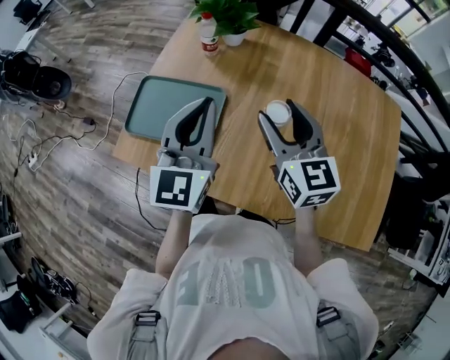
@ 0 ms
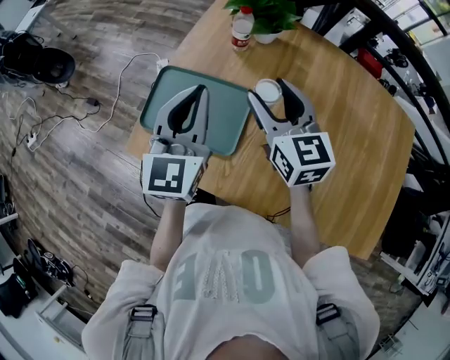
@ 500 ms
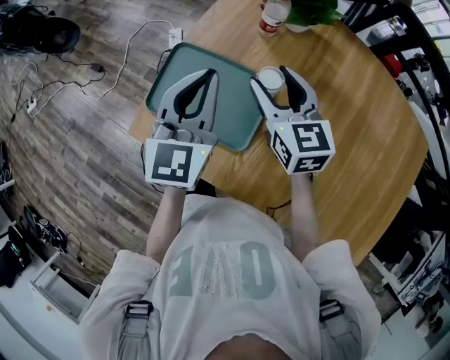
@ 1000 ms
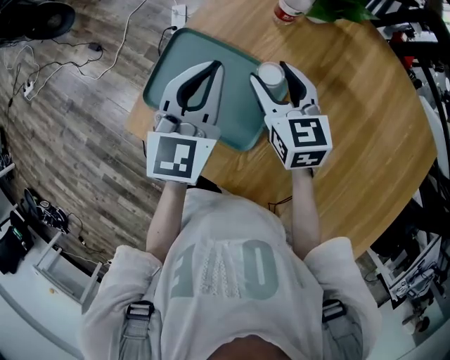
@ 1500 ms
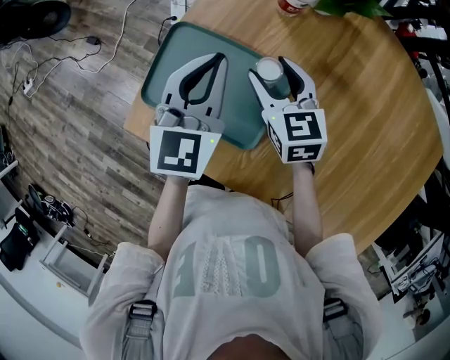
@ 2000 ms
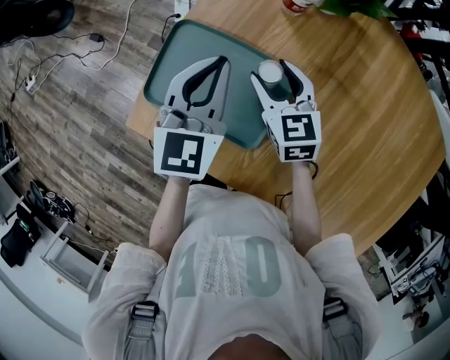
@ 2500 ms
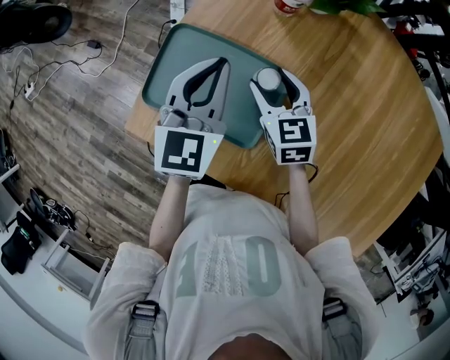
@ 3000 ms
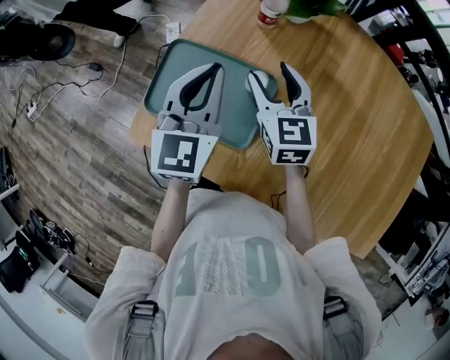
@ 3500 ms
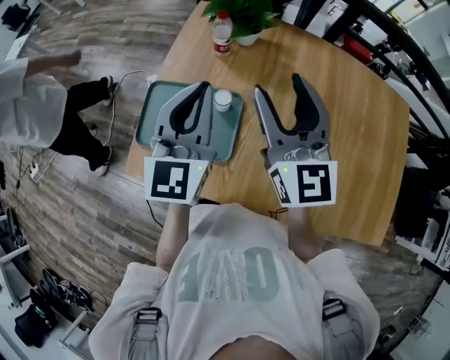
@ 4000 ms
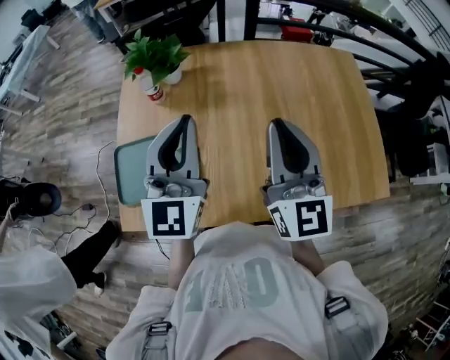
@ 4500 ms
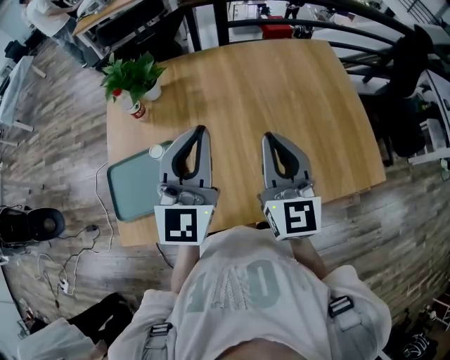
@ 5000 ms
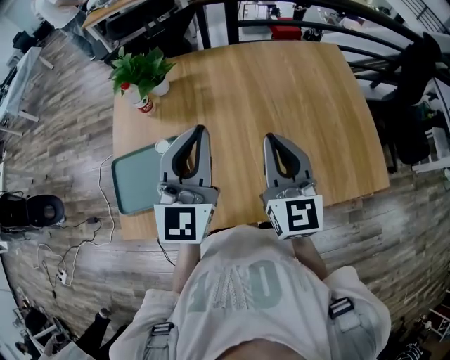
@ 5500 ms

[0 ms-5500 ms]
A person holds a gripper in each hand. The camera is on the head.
0 ms to 2000 ms: The right gripper heads downward, forward and to the left, covering some 30 cm, and rotates about 30 degrees. The left gripper moves forward, downward and to the left, some 25 cm, and turns by roughly 20 degrees.
2000 ms to 3500 ms: The left gripper moves about 5 cm. Meanwhile the right gripper moves upward, about 5 cm.
3500 ms to 5500 ms: The right gripper shifts by approximately 35 cm, changes its angle by about 40 degrees, and closes up. Meanwhile the left gripper changes place by about 30 cm, and changes its angle by approximately 40 degrees.

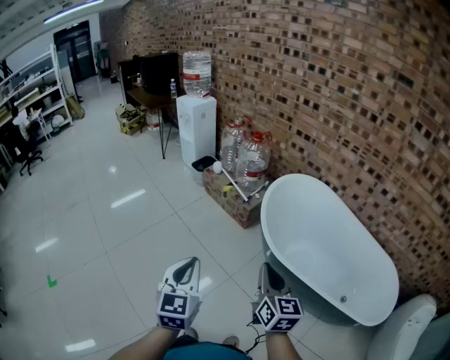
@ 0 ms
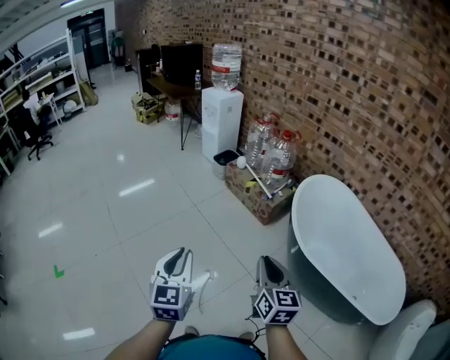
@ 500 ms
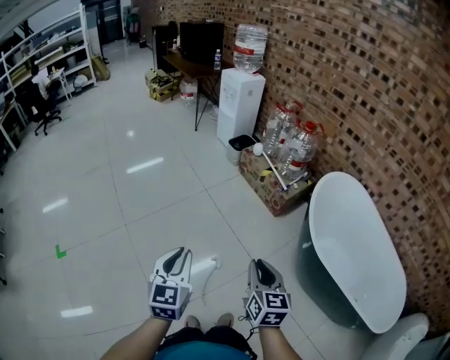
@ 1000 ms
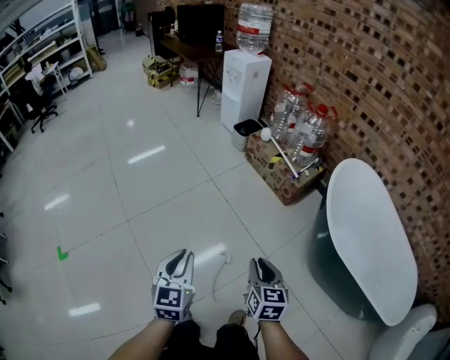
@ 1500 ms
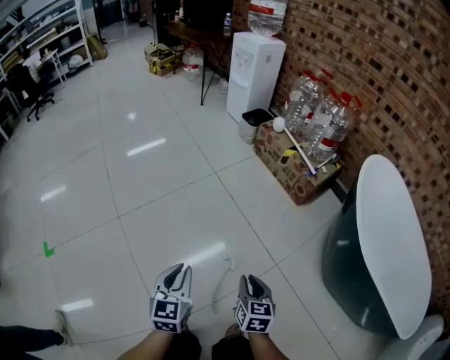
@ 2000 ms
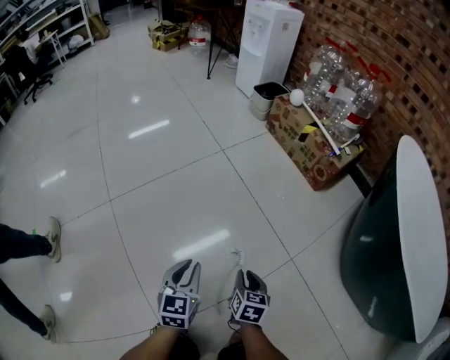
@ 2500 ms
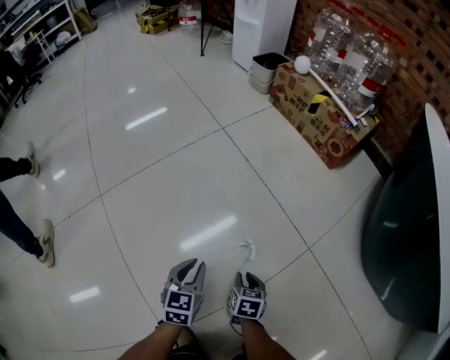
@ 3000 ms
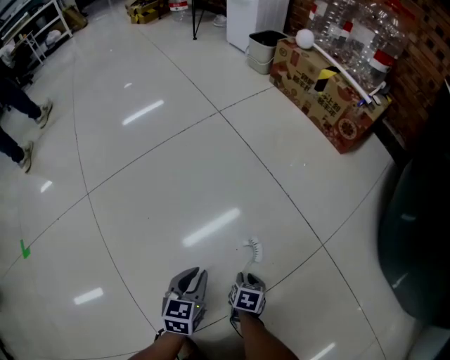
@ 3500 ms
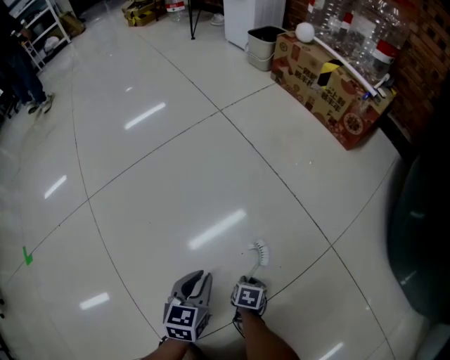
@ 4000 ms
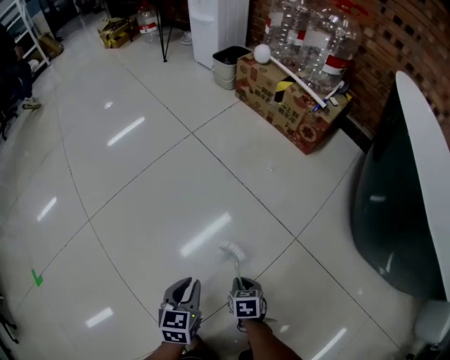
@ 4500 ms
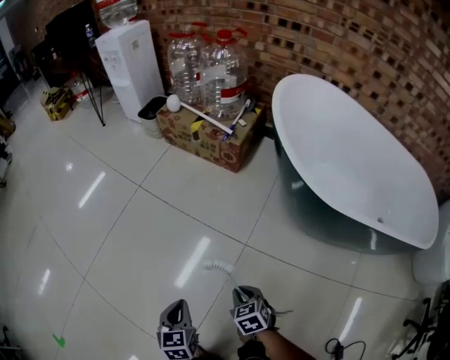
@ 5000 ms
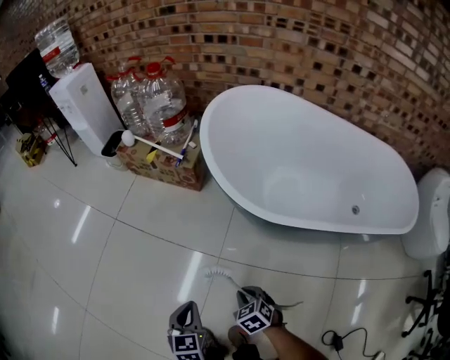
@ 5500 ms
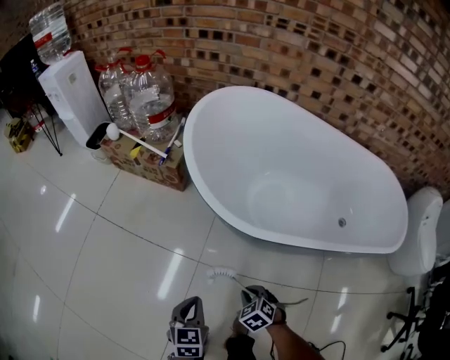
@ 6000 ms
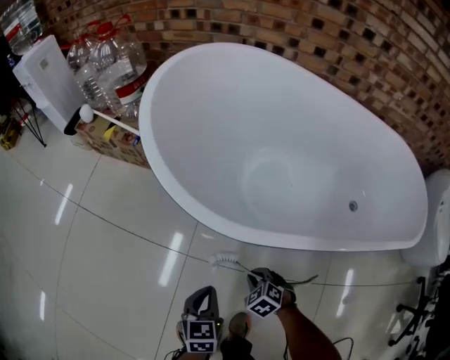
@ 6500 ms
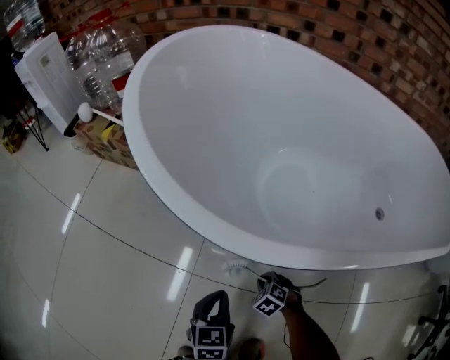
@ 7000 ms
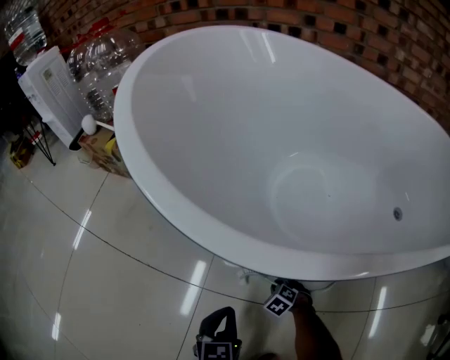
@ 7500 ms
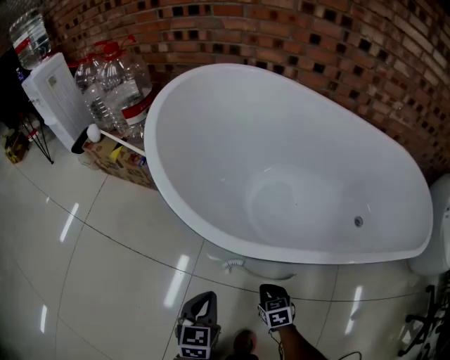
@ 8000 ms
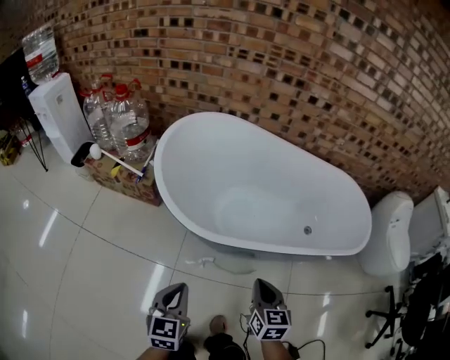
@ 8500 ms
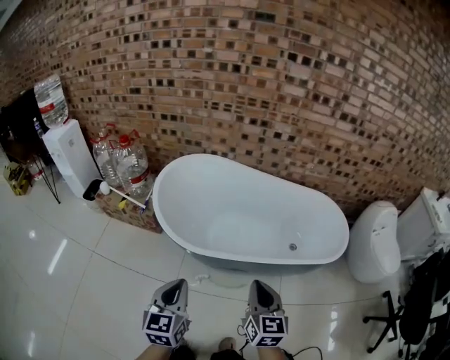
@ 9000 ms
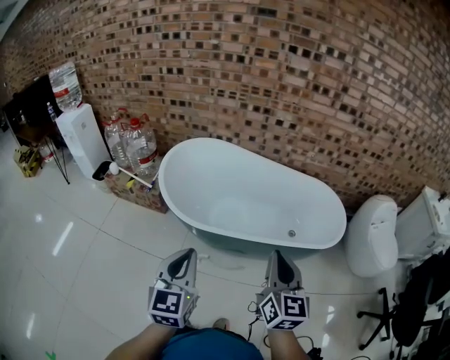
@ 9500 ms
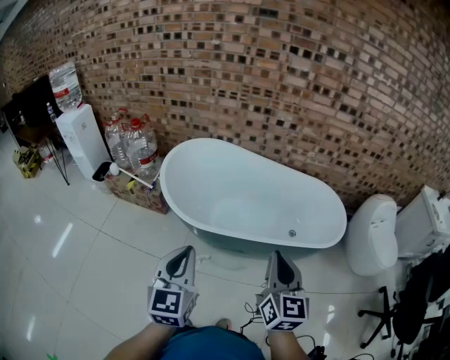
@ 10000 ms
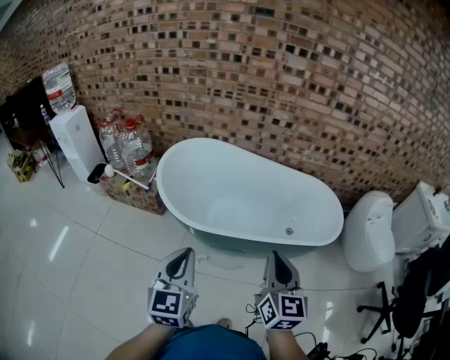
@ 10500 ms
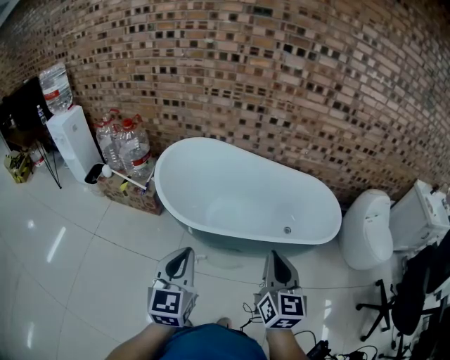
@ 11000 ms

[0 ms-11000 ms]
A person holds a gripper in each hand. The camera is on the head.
0 ms to 2000 ms: The two grippers go about 60 cm downward and to the left. The right gripper turns by roughly 30 degrees.
2000 ms to 3500 ms: Both grippers move downward, roughly 60 cm. The right gripper turns by some 30 degrees.
3500 ms to 5500 ms: The two grippers go approximately 60 cm upward and to the right. The left gripper swivels about 30 degrees.
5500 ms to 7500 ms: The grippers both shift downward by approximately 40 cm. The right gripper turns by roughly 20 degrees.
7500 ms to 9000 ms: The grippers both shift upward by approximately 90 cm. The left gripper swivels roughly 20 degrees, while the right gripper tips its fingers upward by about 60 degrees.
9000 ms to 11000 ms: The left gripper travels upward by some 10 cm. The right gripper shifts roughly 10 cm upward and backward.

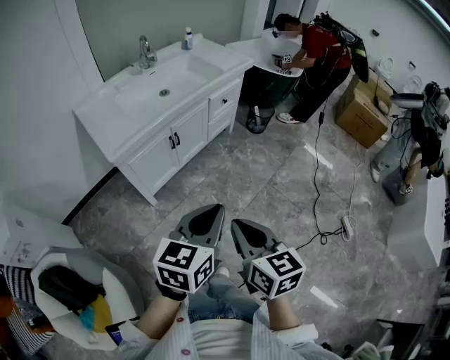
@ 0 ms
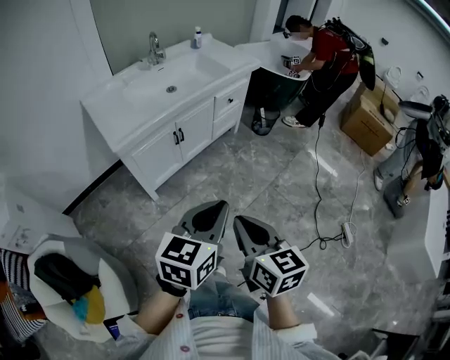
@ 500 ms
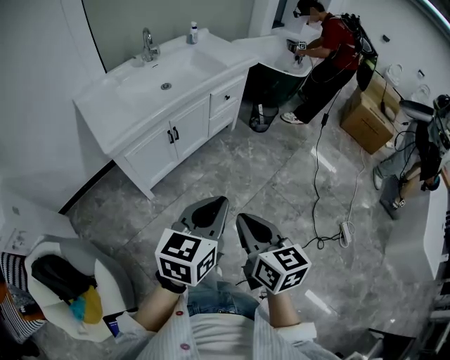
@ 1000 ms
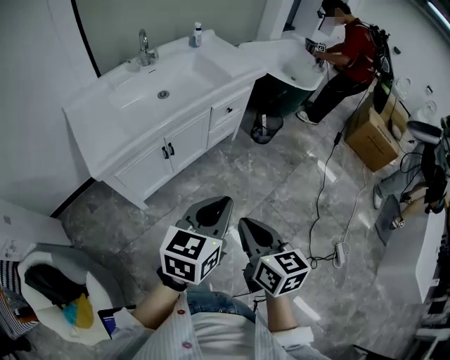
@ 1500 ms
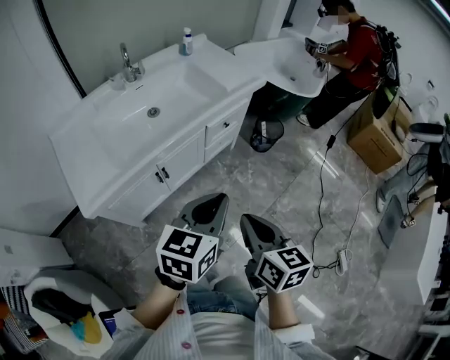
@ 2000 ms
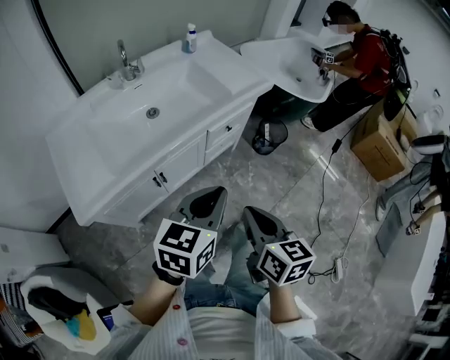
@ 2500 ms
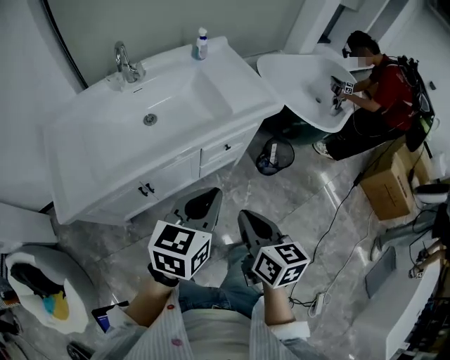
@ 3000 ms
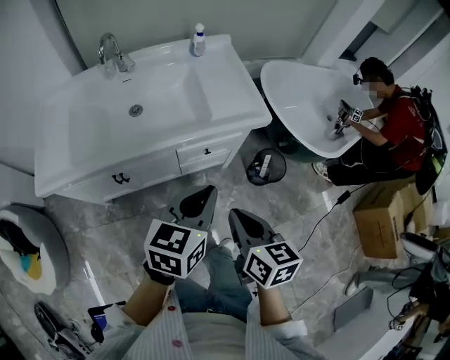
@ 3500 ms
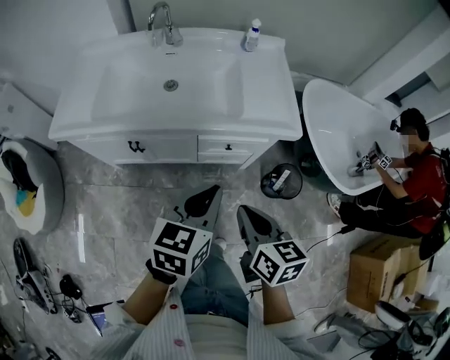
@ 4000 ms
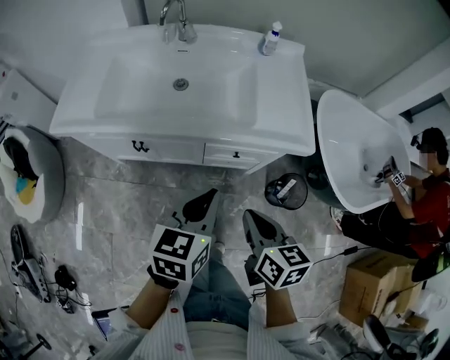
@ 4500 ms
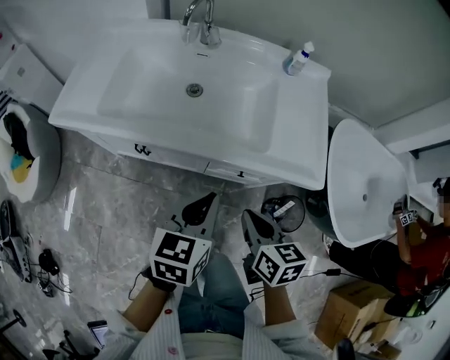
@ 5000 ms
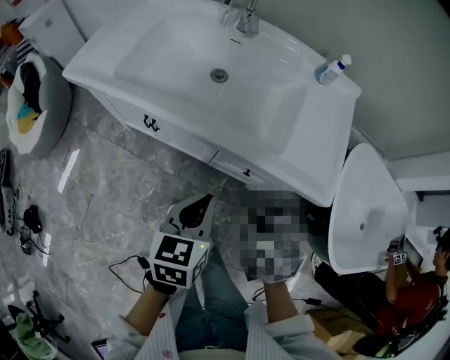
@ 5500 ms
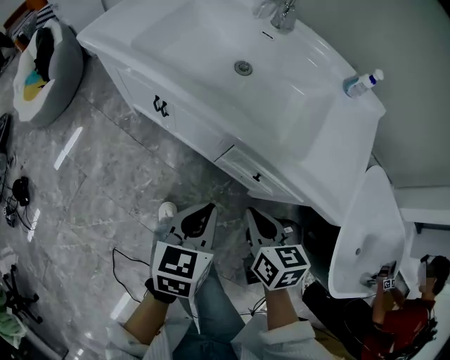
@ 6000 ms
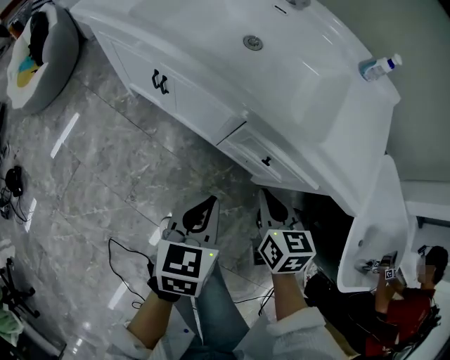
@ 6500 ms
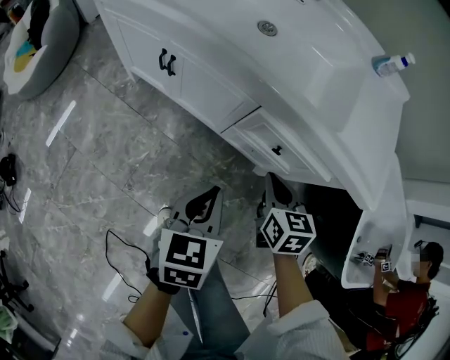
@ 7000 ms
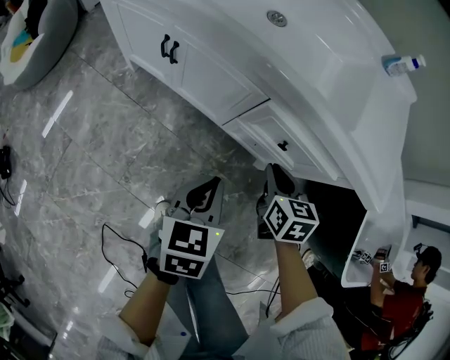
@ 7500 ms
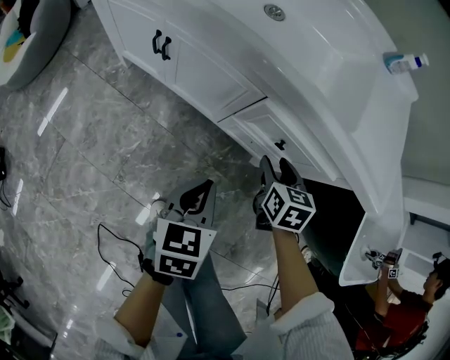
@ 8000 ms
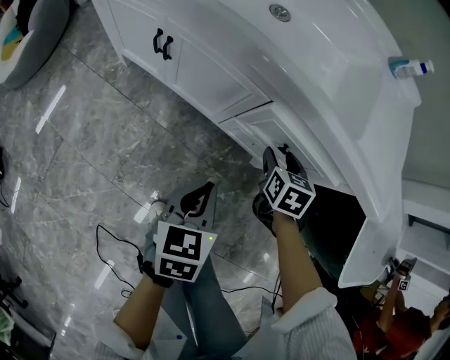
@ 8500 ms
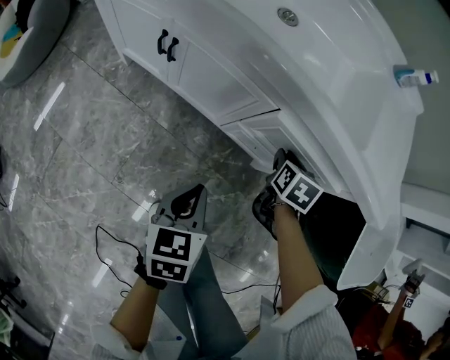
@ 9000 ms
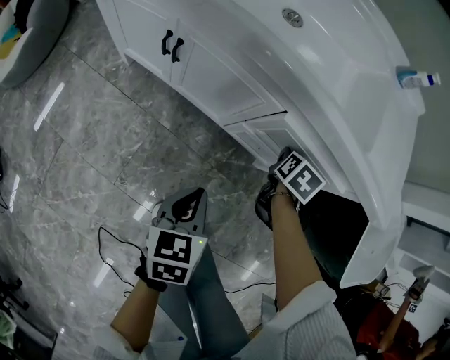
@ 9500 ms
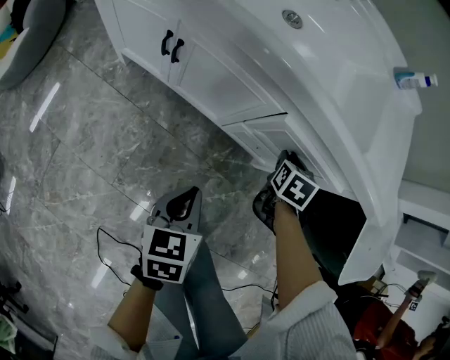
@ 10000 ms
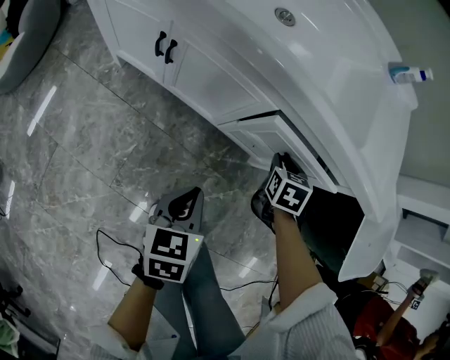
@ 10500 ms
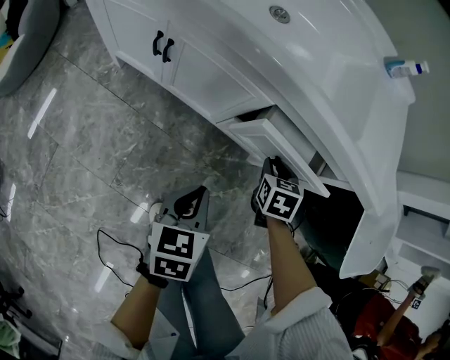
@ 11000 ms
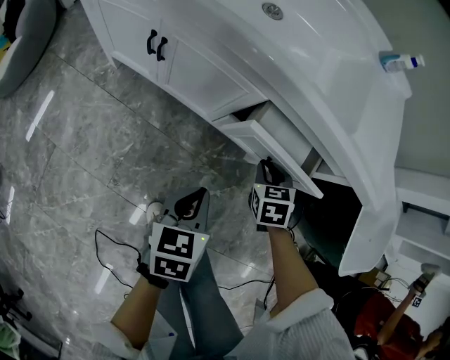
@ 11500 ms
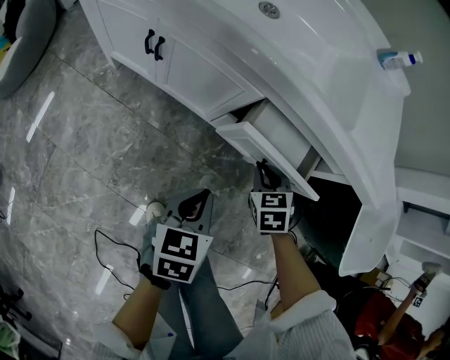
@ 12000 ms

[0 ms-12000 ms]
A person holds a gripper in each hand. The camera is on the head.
0 ms to 2000 ms: Both grippers move forward, approximately 30 cm.
2000 ms to 4000 ms: The right gripper shifts by approximately 35 cm, and turns by about 40 degrees. The left gripper ends up approximately 30 cm from where it was, and changes its angle by approximately 40 degrees.
4000 ms to 6000 ms: The two grippers go about 15 cm downward. The left gripper changes its angle by about 40 degrees; the right gripper changes its angle by roughly 30 degrees.
6000 ms to 8000 ms: Both grippers travel together downward, some 15 cm. The right gripper opens.
8000 ms to 10000 ms: The right gripper moves forward, approximately 5 cm, and changes its angle by roughly 20 degrees, while the left gripper travels to the left by approximately 5 cm.
10000 ms to 12000 ms: The right gripper moves backward, about 10 cm, and swivels some 30 degrees. The left gripper heads to the right, covering some 5 cm.
